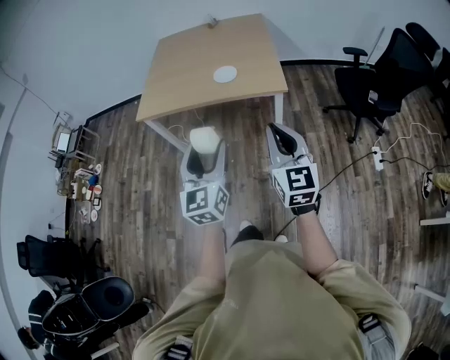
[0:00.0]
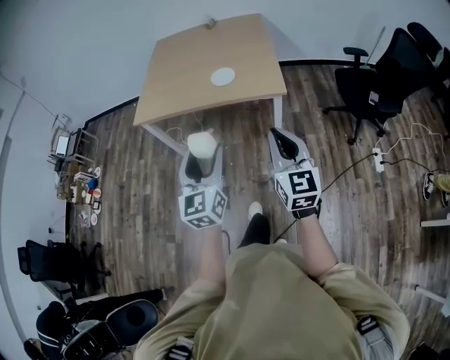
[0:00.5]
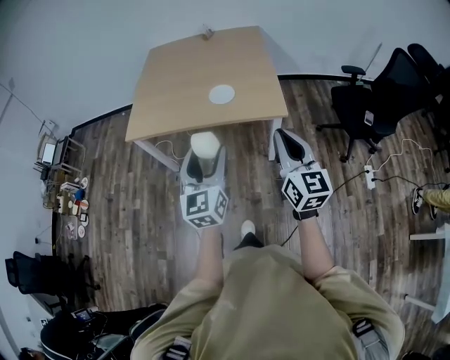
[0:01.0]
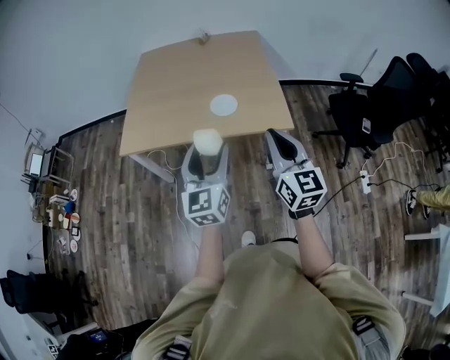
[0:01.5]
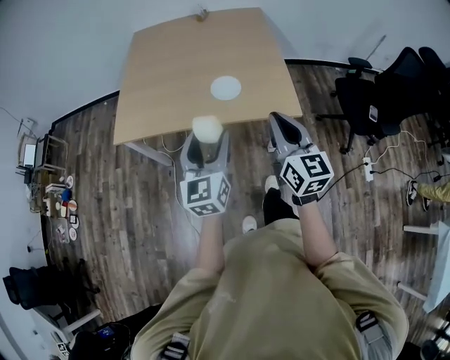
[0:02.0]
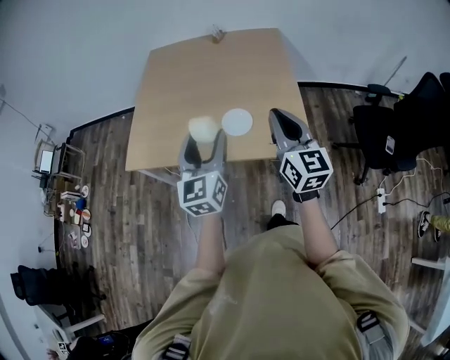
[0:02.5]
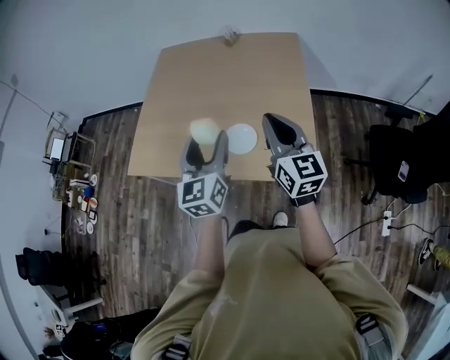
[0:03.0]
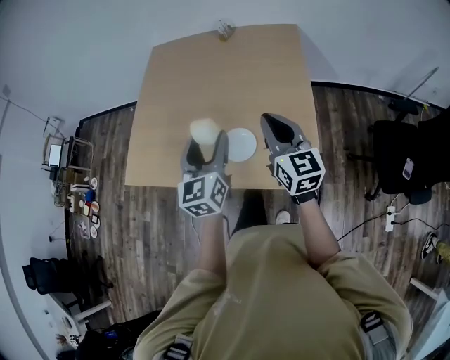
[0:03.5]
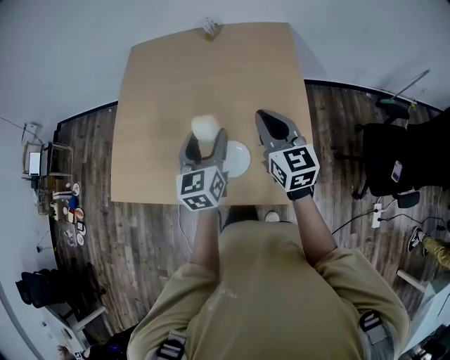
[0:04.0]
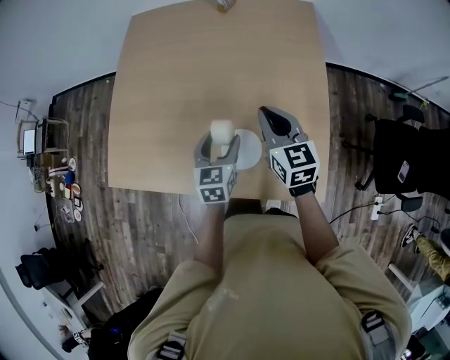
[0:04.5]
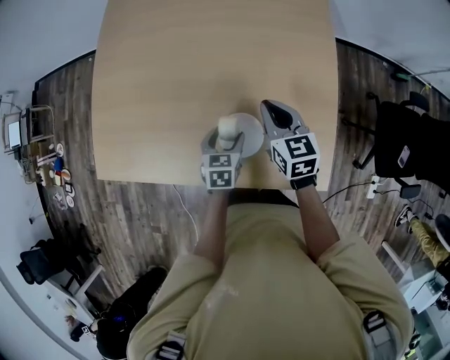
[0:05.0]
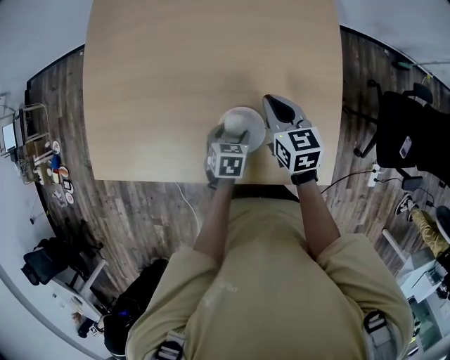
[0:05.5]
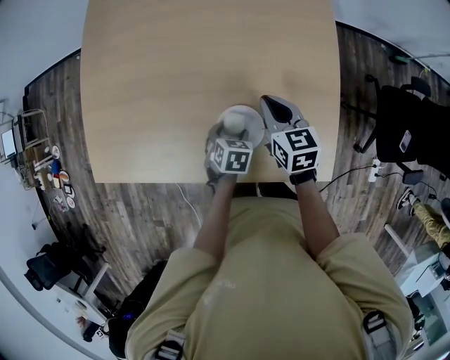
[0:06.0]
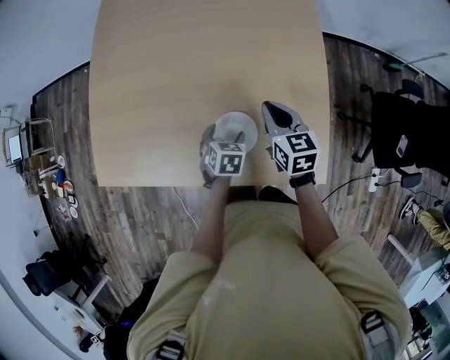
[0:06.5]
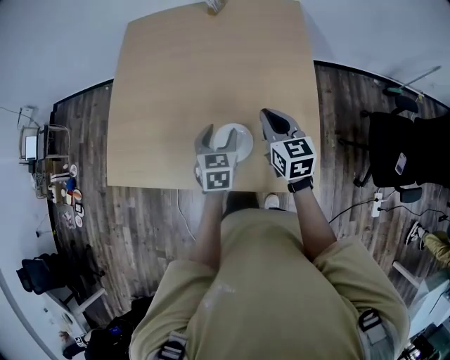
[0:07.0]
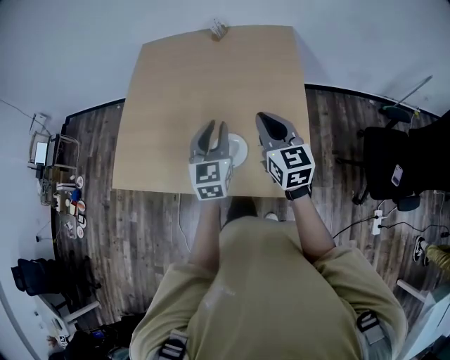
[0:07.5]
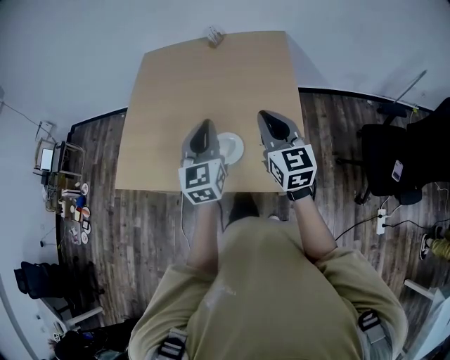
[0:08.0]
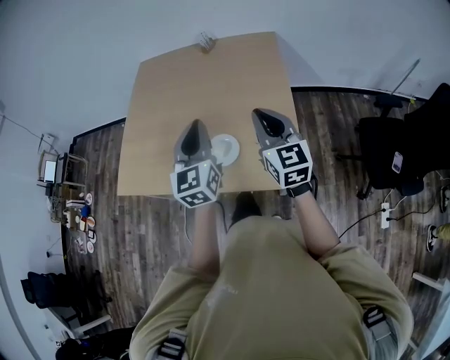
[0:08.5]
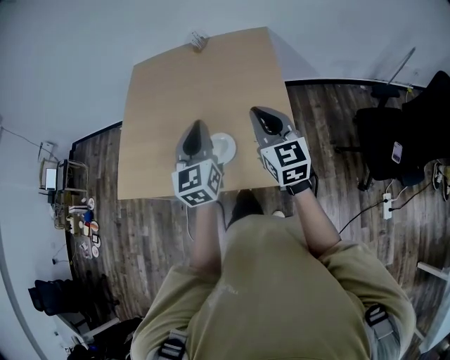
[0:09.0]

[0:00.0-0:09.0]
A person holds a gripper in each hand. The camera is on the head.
0:00.0 to 0:02.0: Both grippers move forward, roughly 30 cm.
0:02.0 to 0:04.5: The pair of grippers is taken forward, approximately 50 cm. The right gripper turns by about 20 degrees. Meanwhile the left gripper is displaced downward by roughly 20 cm, and changes its angle by approximately 30 degrees.
0:04.5 to 0:07.0: The left gripper moves roughly 20 cm downward and comes back. The right gripper moves some 15 cm downward and comes back.
0:07.0 to 0:09.0: The left gripper moves upward and backward, about 25 cm, tilts its fingers approximately 30 degrees upward, and closes up, while the right gripper travels upward, backward and to the right by some 20 cm, and swivels about 20 degrees.

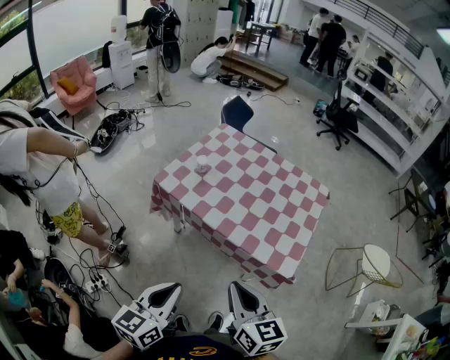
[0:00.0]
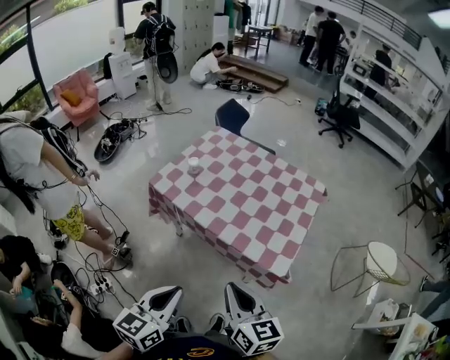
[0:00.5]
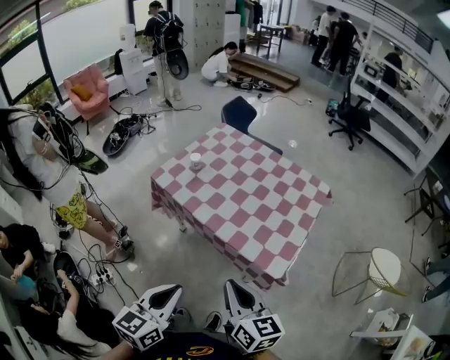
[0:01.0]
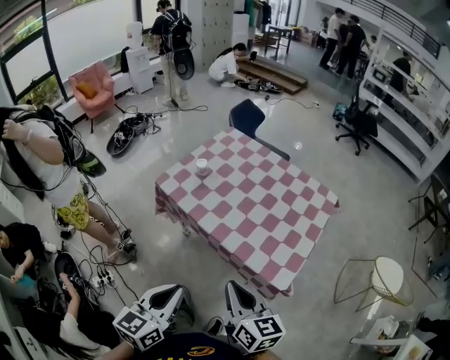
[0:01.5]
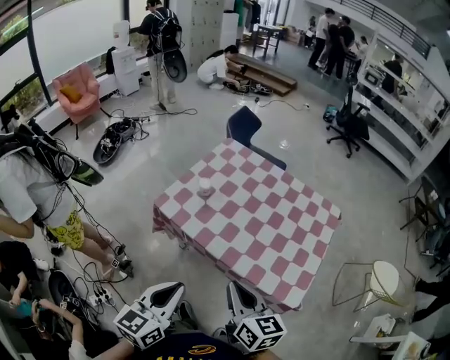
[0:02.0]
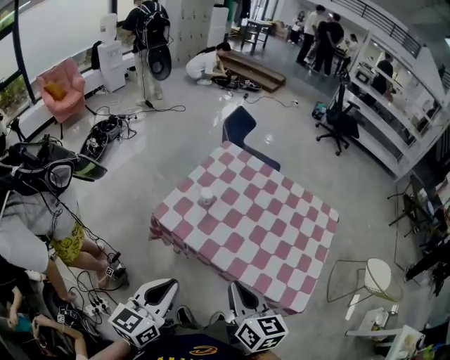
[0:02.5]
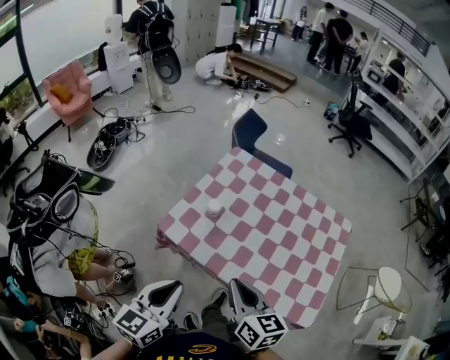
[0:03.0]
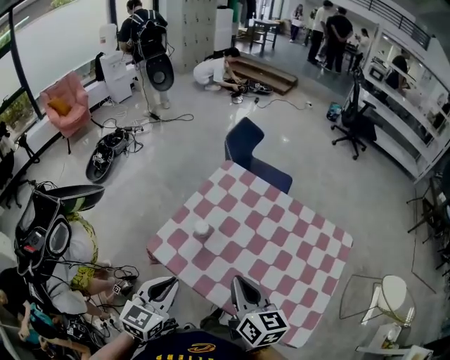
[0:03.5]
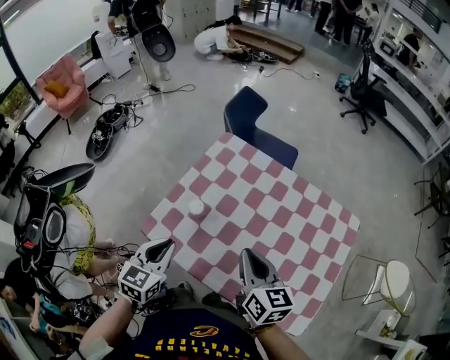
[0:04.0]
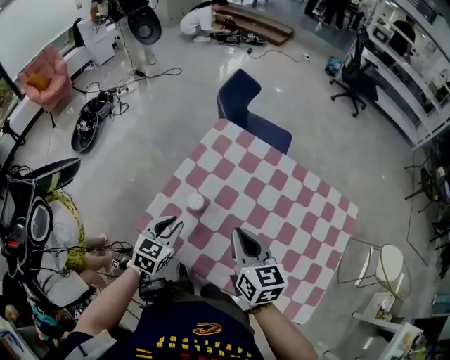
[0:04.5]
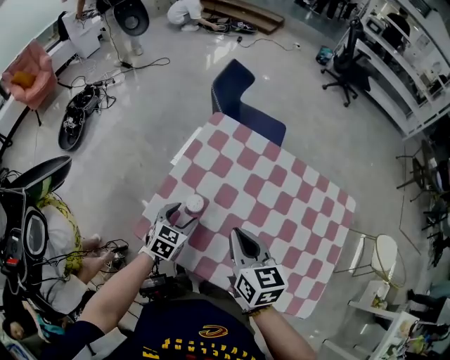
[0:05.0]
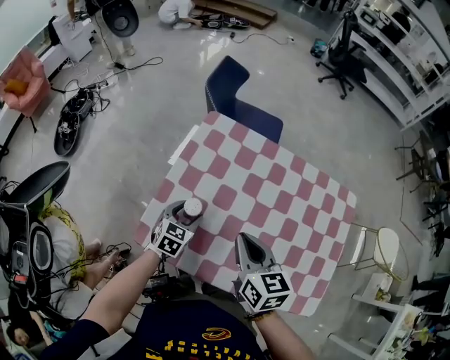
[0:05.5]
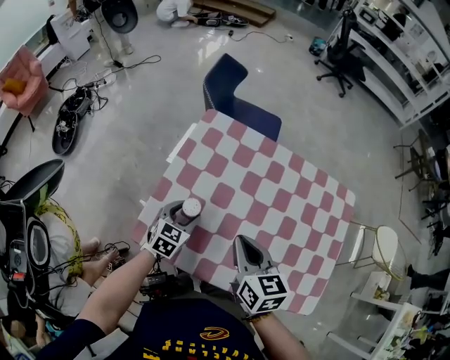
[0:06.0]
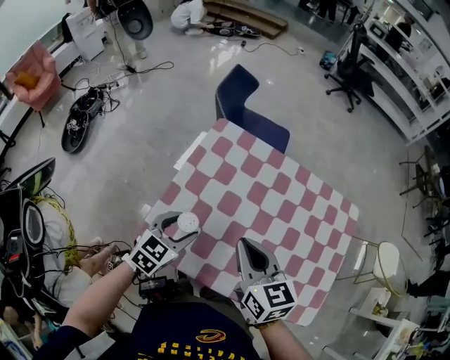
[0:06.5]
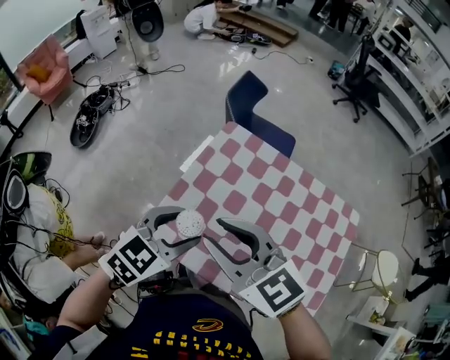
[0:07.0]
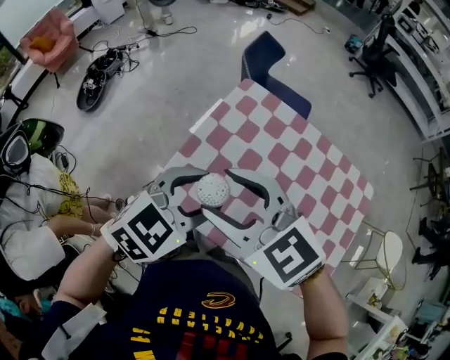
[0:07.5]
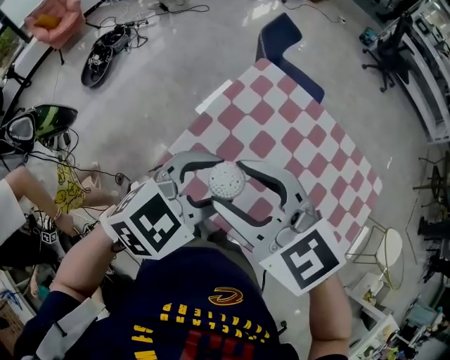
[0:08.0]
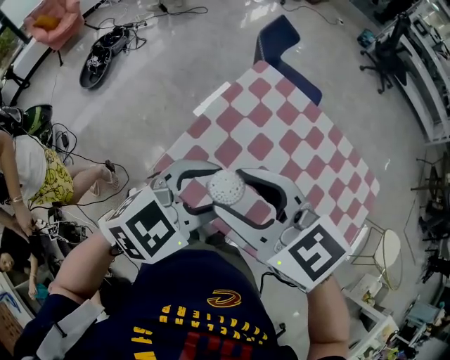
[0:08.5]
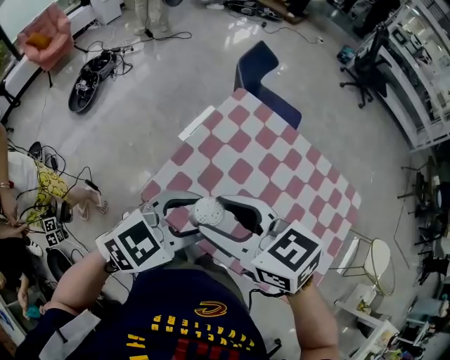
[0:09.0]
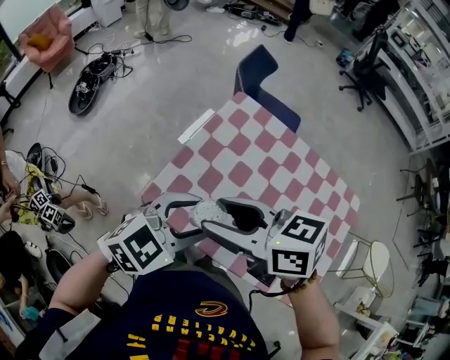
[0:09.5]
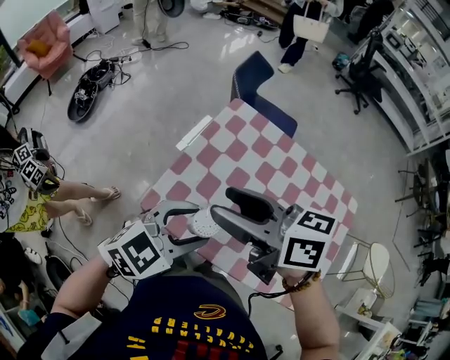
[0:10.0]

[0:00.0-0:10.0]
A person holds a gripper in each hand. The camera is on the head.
0:00.0 to 0:02.0: The grippers both shift forward by some 15 cm.
0:02.0 to 0:04.0: The two grippers go roughly 30 cm forward. The left gripper turns by about 20 degrees.
0:04.0 to 0:06.0: The left gripper travels downward and forward by roughly 25 cm, swivels roughly 20 degrees, and opens. Meanwhile the right gripper shifts roughly 10 cm to the left and downward.
0:06.0 to 0:08.0: The left gripper is displaced upward and backward by roughly 30 cm; the right gripper shifts roughly 20 cm to the left and upward, swivels about 60 degrees, and opens its fingers.
0:08.0 to 0:10.0: The right gripper twists roughly 40 degrees clockwise, seen from behind.

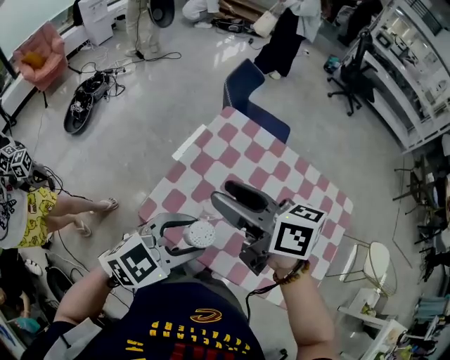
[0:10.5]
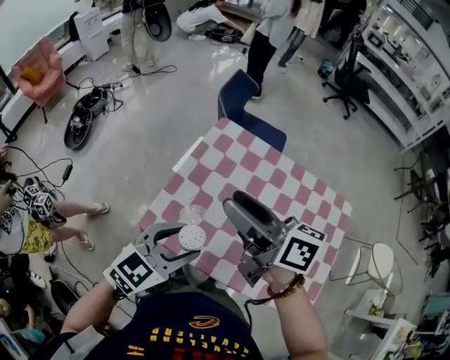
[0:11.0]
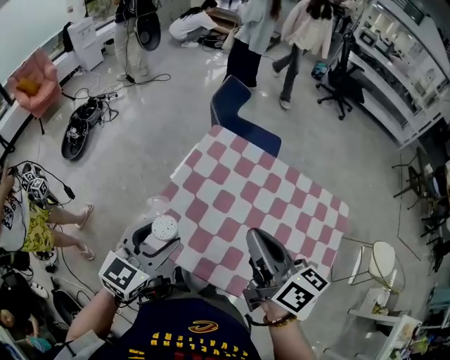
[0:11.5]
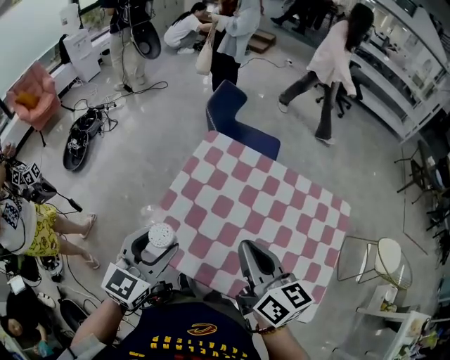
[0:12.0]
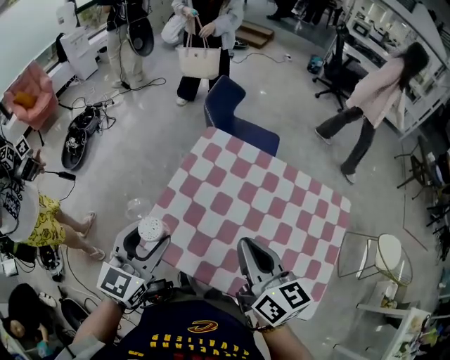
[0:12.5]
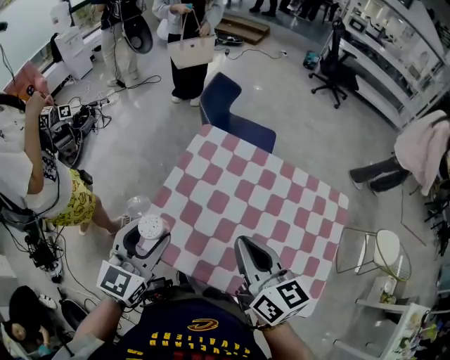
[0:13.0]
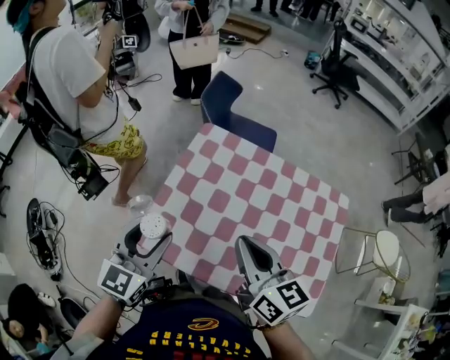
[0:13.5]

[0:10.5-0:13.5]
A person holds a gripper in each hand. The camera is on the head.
0:10.5 to 0:12.0: The right gripper heads to the right and backward, covering about 10 cm, turns by some 30 degrees, and closes its fingers; the left gripper moves to the left, about 5 cm, and rotates approximately 30 degrees.
0:12.0 to 0:13.5: The grippers make only small movements.

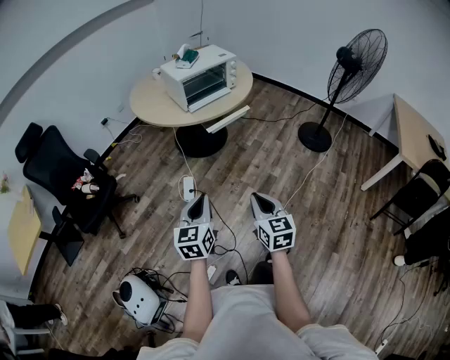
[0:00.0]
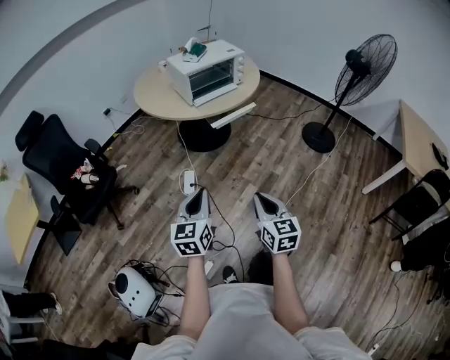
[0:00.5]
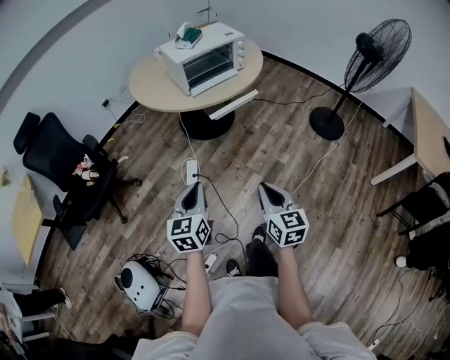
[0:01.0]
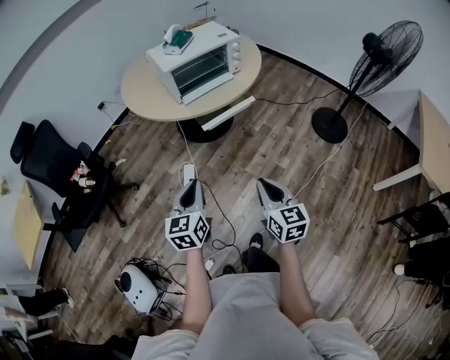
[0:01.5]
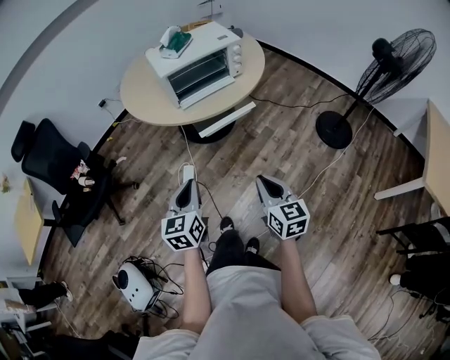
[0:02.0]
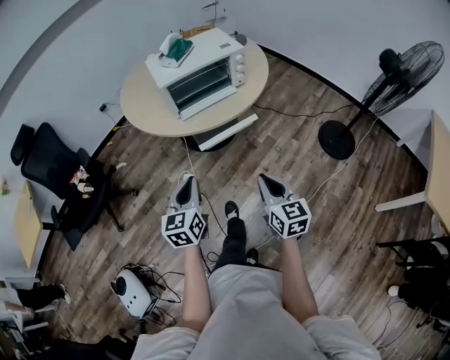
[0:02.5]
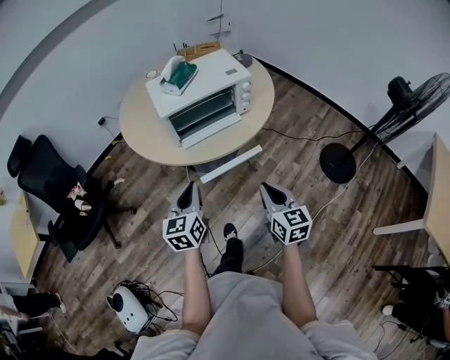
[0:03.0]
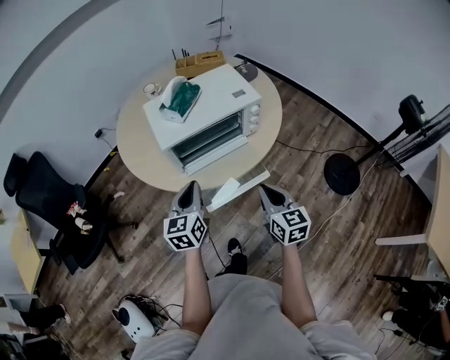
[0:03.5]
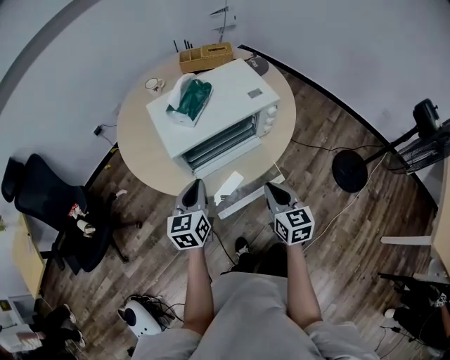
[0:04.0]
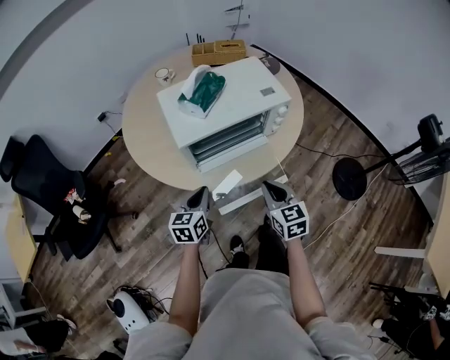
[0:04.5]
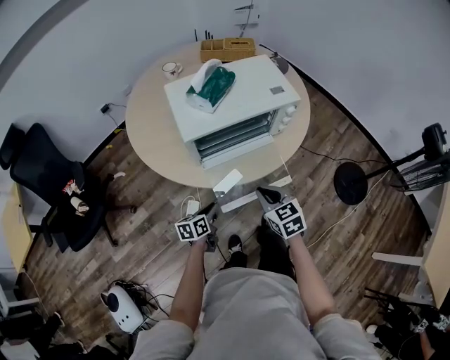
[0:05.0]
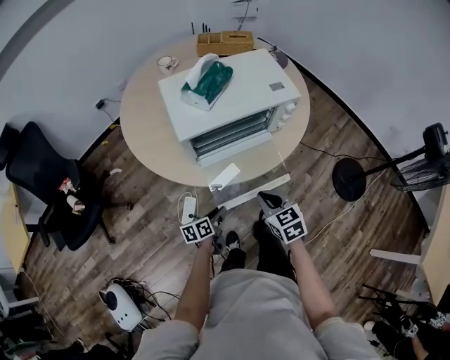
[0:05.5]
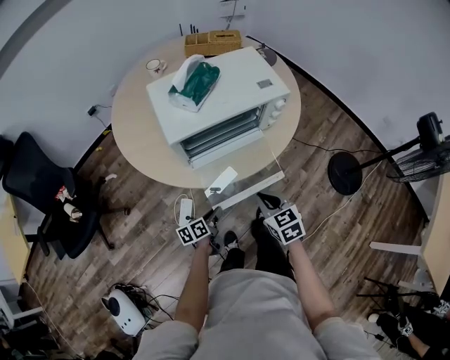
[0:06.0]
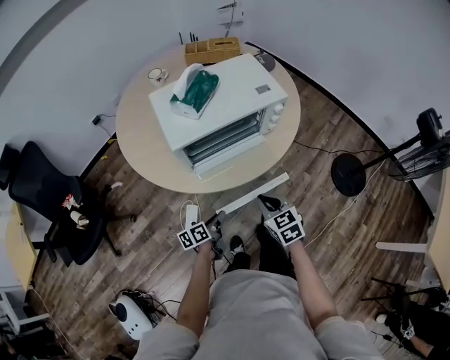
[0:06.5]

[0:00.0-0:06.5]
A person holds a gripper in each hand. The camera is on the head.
0:00.0 to 0:02.0: The left gripper travels forward by about 20 cm. The right gripper moves forward and to the right, approximately 25 cm.
0:02.0 to 0:04.5: The two grippers go about 35 cm forward.
0:04.5 to 0:06.5: The right gripper moves downward, some 5 cm, while the left gripper shifts about 15 cm downward and backward, and rolls counterclockwise, seen from behind, by about 40 degrees.
